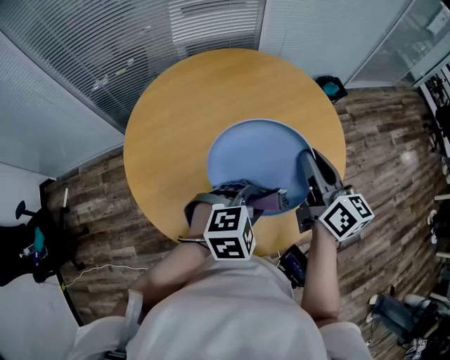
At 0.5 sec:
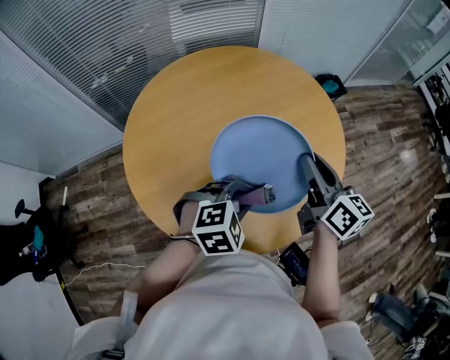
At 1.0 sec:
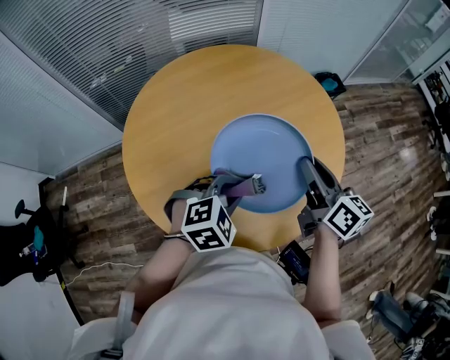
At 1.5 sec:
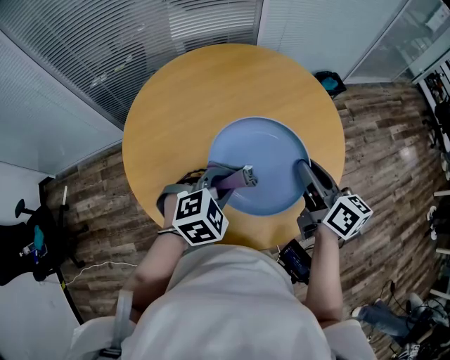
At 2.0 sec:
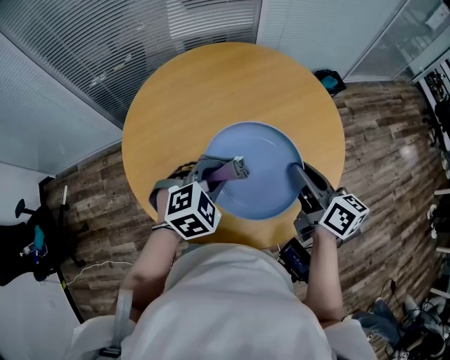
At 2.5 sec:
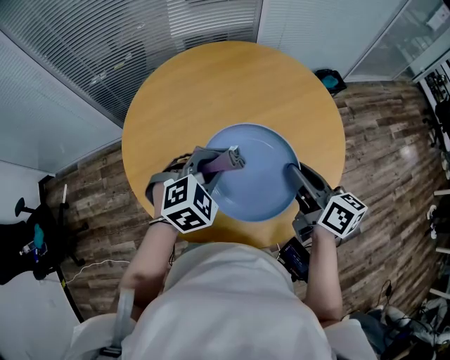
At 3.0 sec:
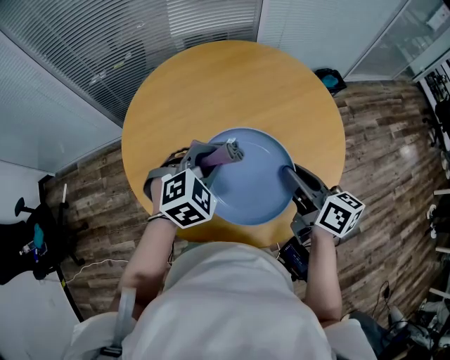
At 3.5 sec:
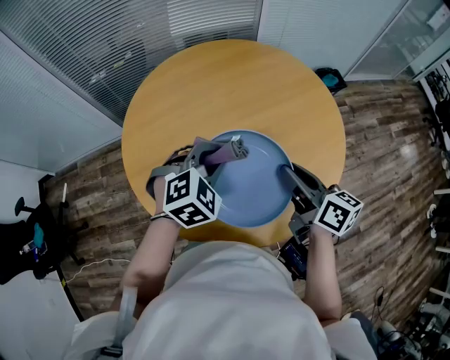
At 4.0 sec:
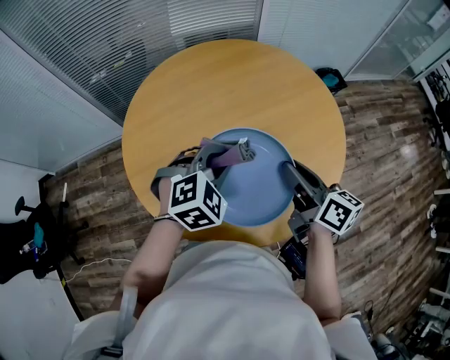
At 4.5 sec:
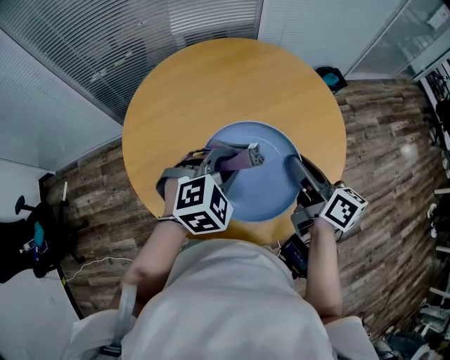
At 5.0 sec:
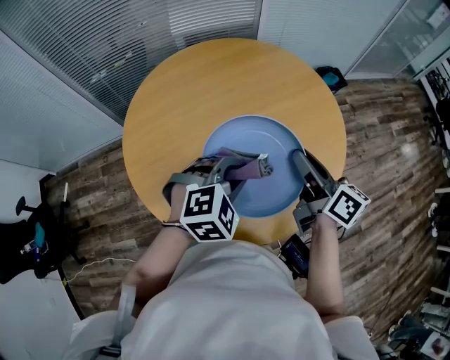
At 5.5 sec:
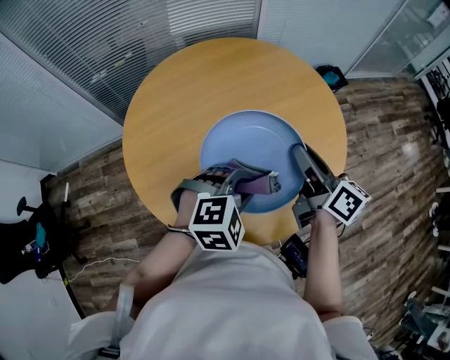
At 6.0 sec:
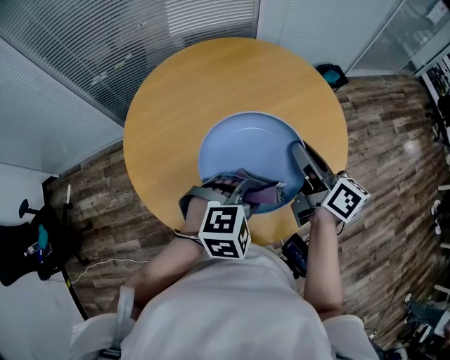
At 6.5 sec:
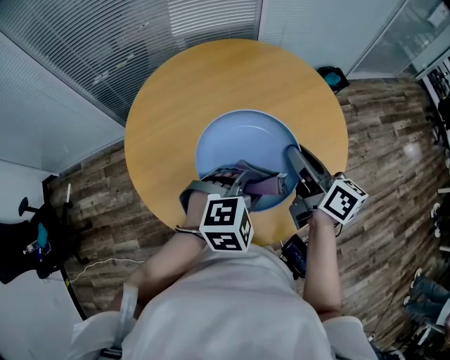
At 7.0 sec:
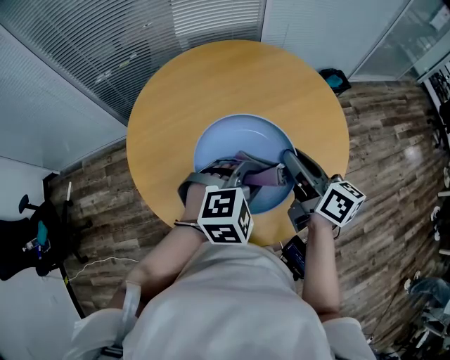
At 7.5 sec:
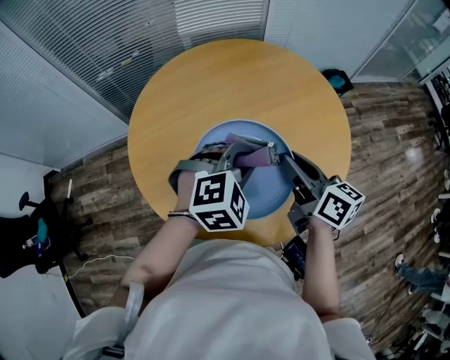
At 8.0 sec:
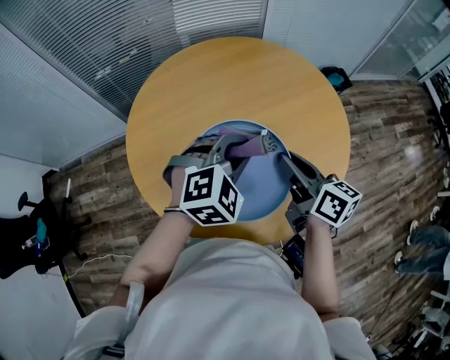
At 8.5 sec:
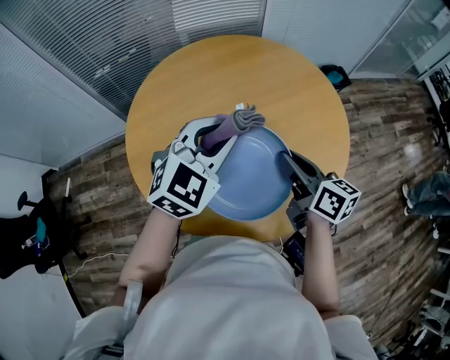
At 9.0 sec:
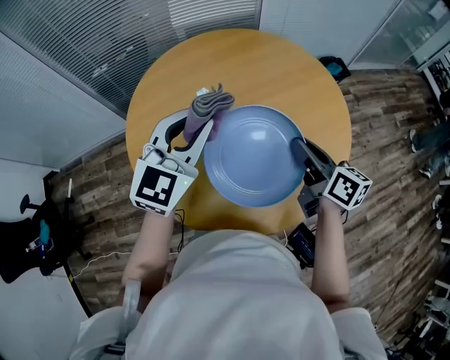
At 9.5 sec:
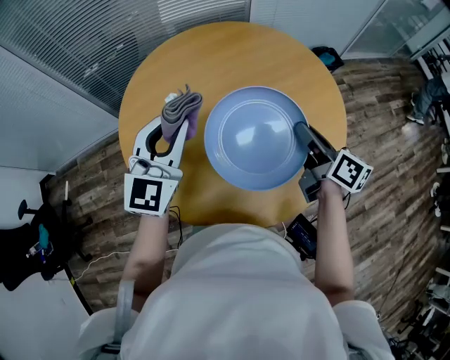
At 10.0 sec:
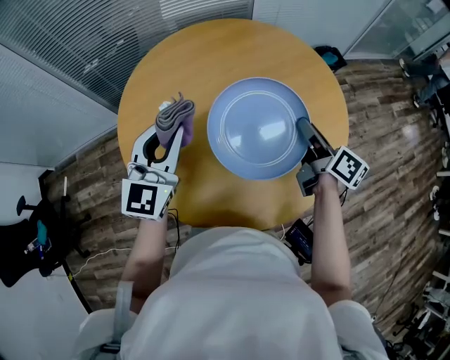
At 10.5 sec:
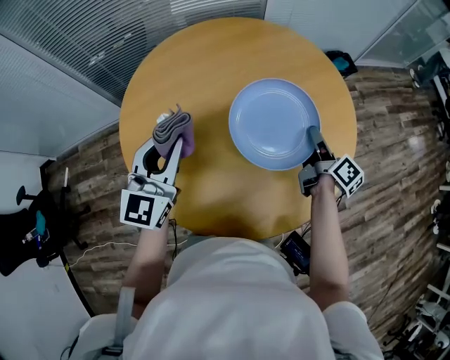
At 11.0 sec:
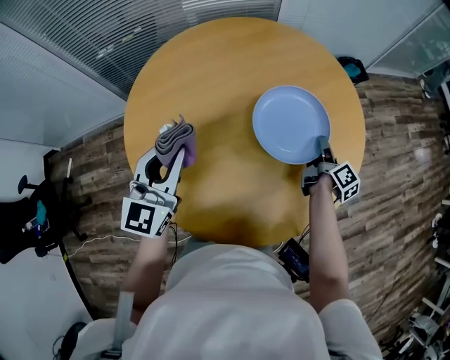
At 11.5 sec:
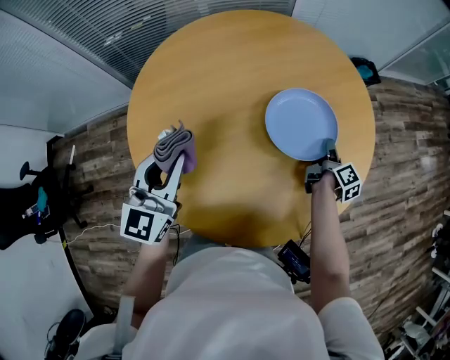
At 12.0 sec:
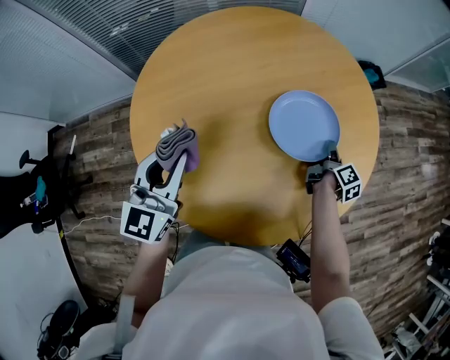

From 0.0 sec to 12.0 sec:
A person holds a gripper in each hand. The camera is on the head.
From 0.0 sec to 2.0 sec: The left gripper is displaced to the left by approximately 10 cm. Meanwhile the right gripper travels downward by approximately 5 cm.
From 2.0 sec to 4.0 sec: The grippers stay close to where they were, moving slightly.
From 4.0 sec to 6.0 sec: The left gripper heads to the right and backward, covering roughly 10 cm.
From 6.0 sec to 8.0 sec: The left gripper is displaced forward, upward and to the left by some 15 cm.
From 8.0 sec to 10.0 sec: The right gripper shifts approximately 5 cm to the right. Meanwhile the left gripper shifts about 15 cm to the left, and tips its fingers upward by roughly 40 degrees.
From 10.0 sec to 12.0 sec: The right gripper moves downward and to the right, approximately 25 cm, and turns by some 40 degrees, while the left gripper goes some 5 cm downward.

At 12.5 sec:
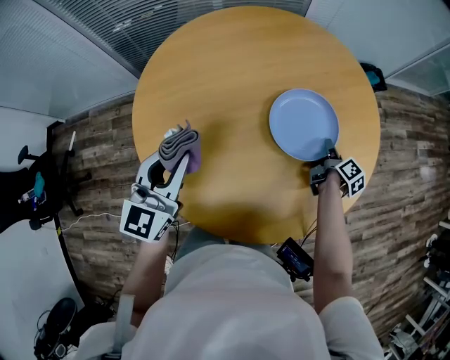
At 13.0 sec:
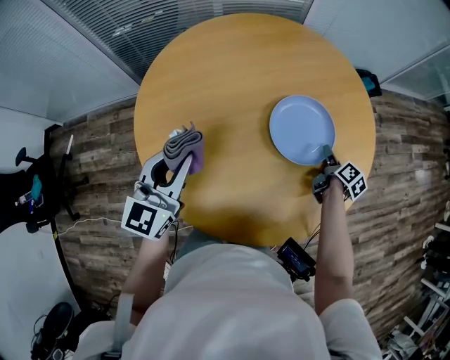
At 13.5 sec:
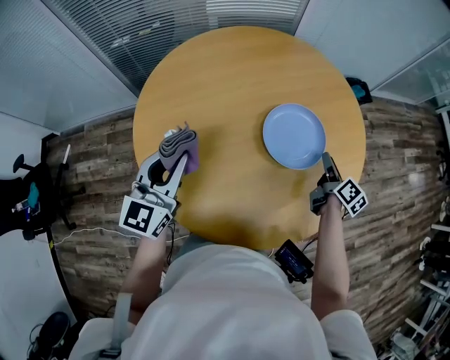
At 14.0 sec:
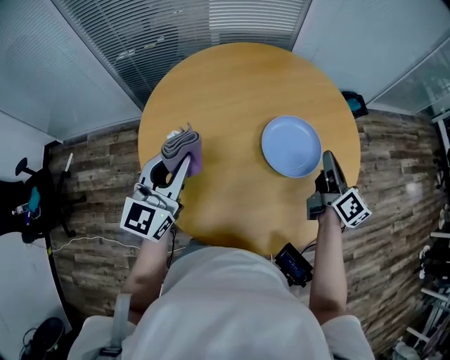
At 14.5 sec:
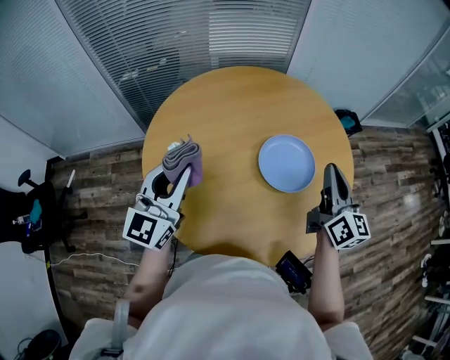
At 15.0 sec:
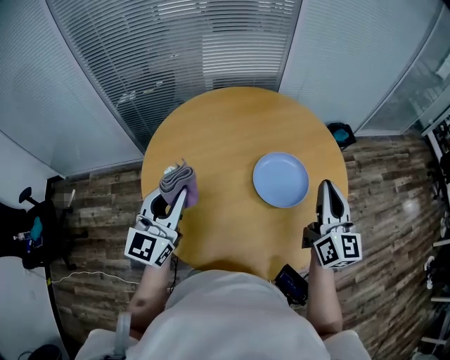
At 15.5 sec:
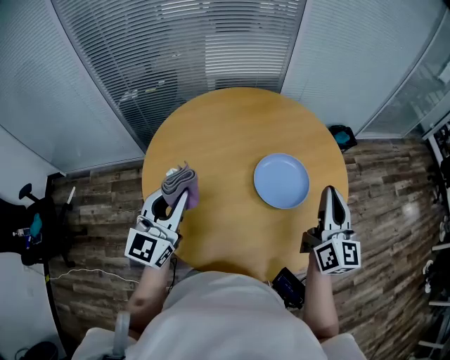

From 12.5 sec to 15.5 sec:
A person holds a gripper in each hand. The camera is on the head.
From 12.5 sec to 14.0 sec: The left gripper goes approximately 5 cm upward, while the right gripper moves upward, some 25 cm, swivels about 40 degrees, and opens, then closes once more.
From 14.0 sec to 15.5 sec: The right gripper heads upward and backward, covering approximately 15 cm, and turns by some 30 degrees.

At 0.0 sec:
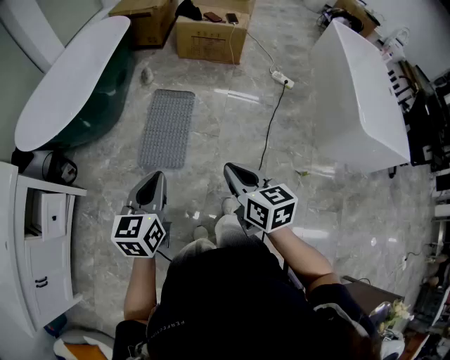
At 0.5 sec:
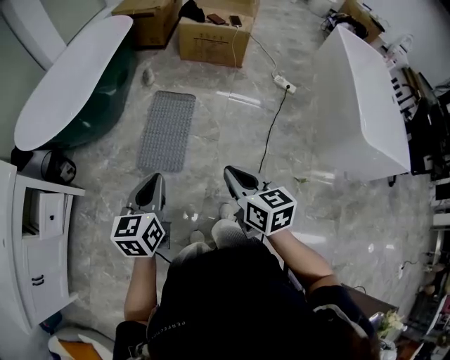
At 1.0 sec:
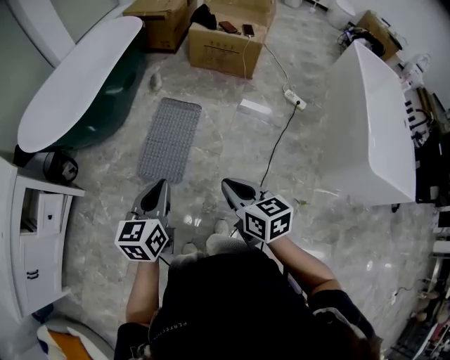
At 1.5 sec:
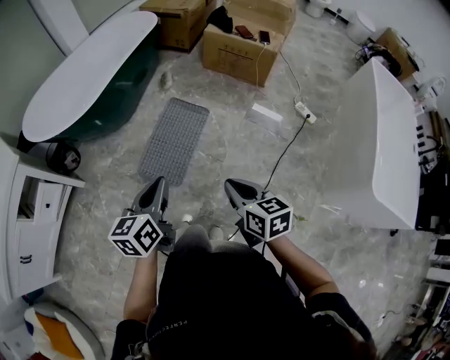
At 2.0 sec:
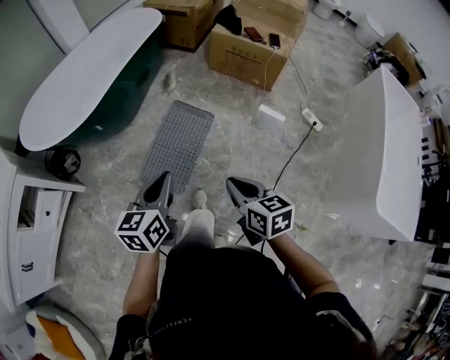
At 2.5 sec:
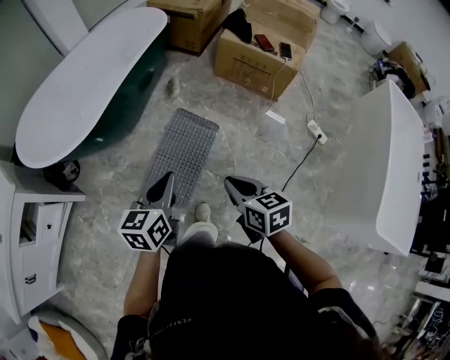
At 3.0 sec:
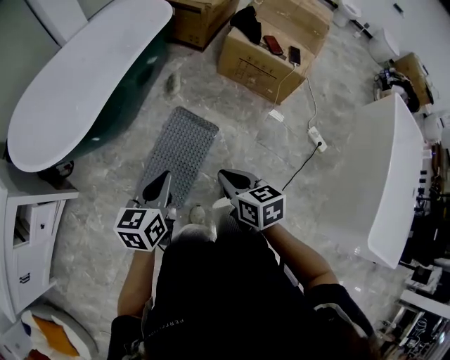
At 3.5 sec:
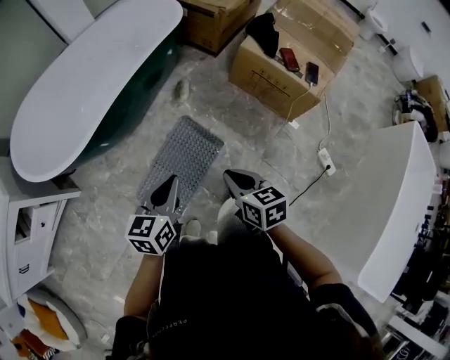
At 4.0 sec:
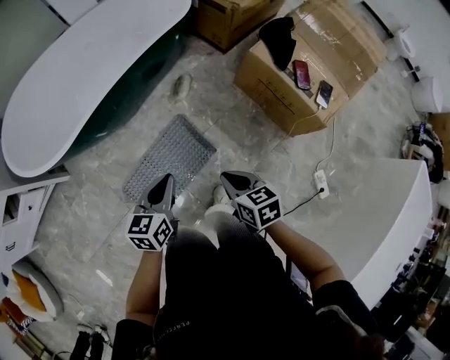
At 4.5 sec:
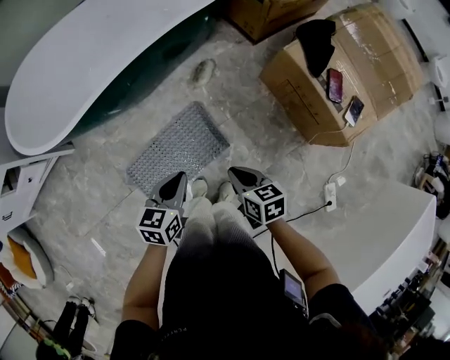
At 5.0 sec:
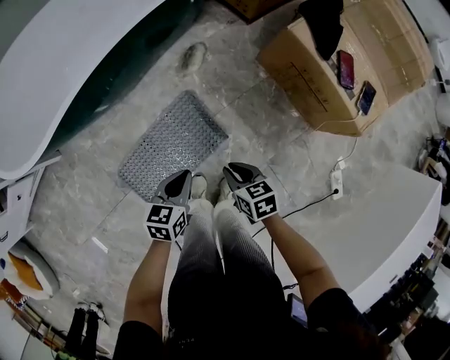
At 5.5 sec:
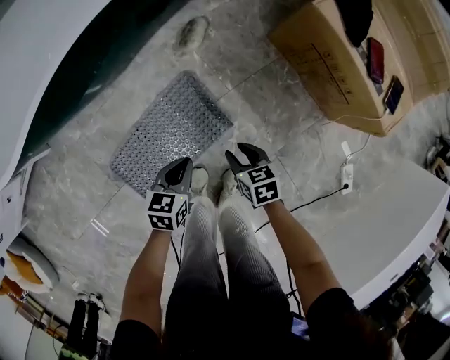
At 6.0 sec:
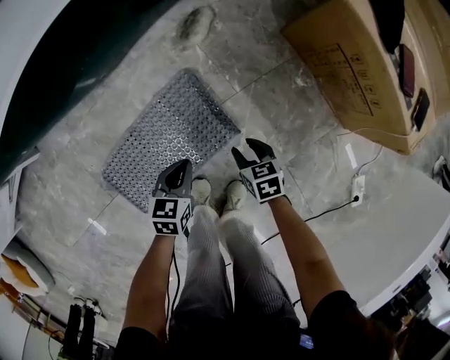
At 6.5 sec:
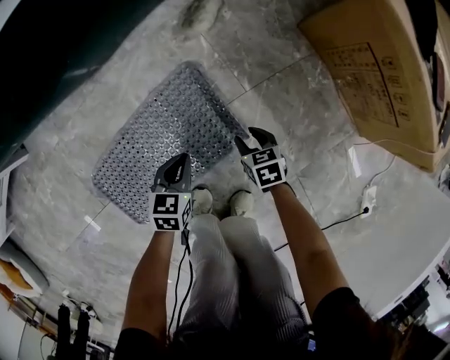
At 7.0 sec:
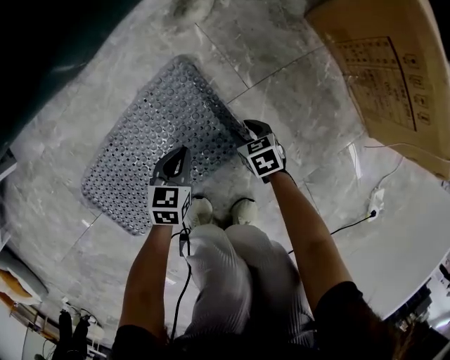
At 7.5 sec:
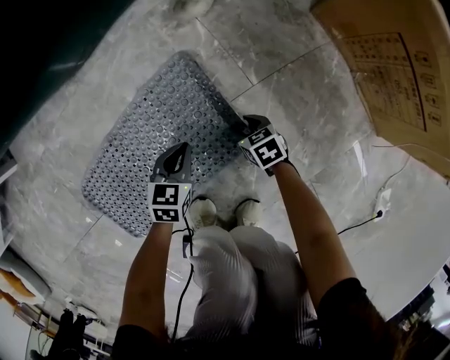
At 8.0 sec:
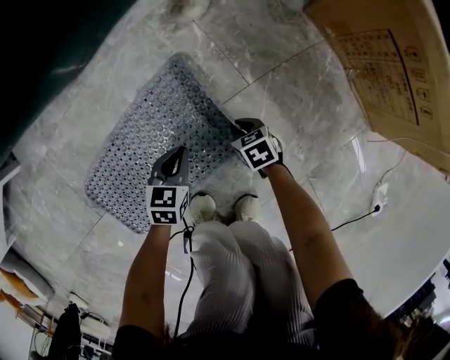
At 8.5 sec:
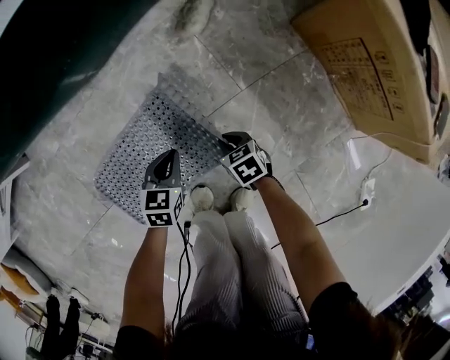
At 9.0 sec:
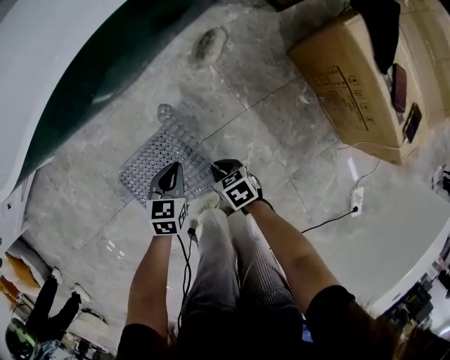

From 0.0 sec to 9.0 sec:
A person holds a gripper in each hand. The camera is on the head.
From 0.0 sec to 2.0 sec: The left gripper heads forward and to the right, covering approximately 20 cm. Meanwhile the right gripper moves forward, roughly 20 cm.
From 2.0 sec to 4.5 sec: Both grippers are carried some 40 cm. The left gripper swivels about 20 degrees; the right gripper rotates about 30 degrees.
From 4.5 sec to 7.0 sec: The grippers both shift downward by roughly 60 cm. The right gripper rotates roughly 30 degrees, and opens its fingers.
From 7.0 sec to 9.0 sec: The right gripper travels upward and to the left by some 30 cm, and closes its fingers; the left gripper shifts roughly 25 cm upward.

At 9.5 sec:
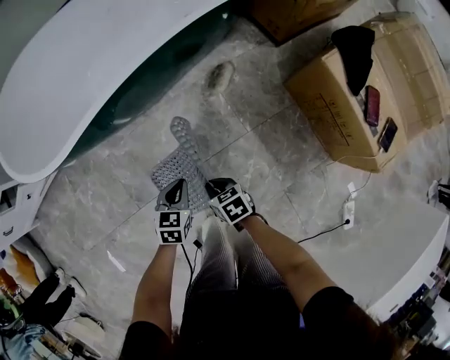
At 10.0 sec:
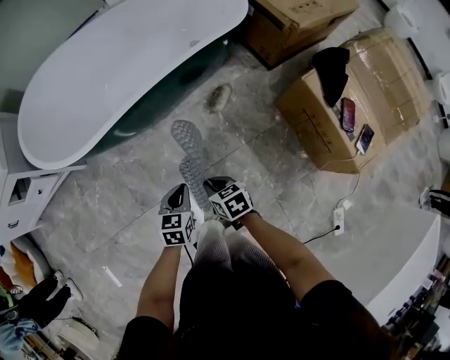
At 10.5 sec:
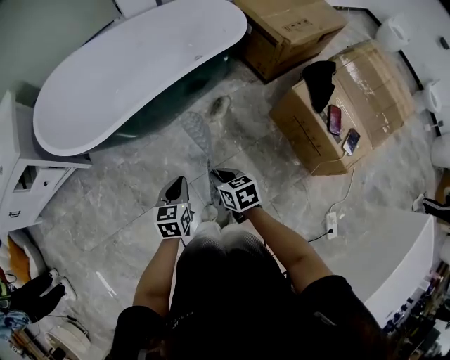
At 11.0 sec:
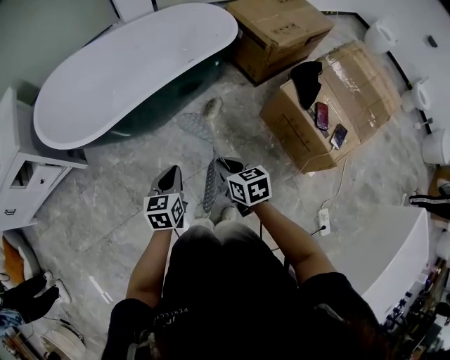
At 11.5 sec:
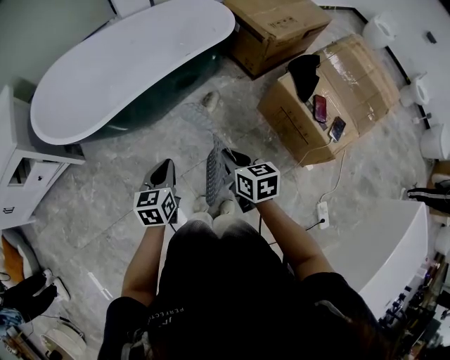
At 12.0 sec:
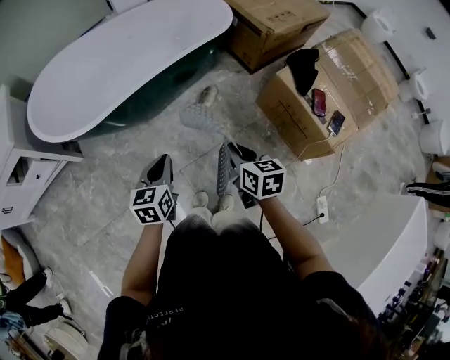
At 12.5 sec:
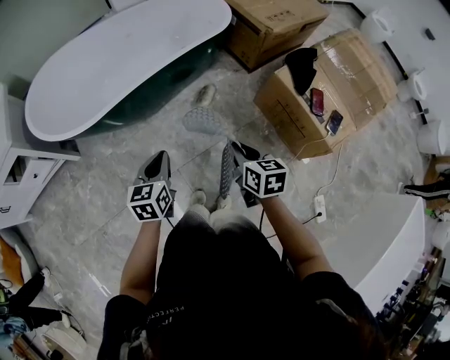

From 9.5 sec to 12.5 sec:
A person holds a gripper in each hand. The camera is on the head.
From 9.5 sec to 11.0 sec: Both grippers move upward, approximately 25 cm. The right gripper turns by some 20 degrees, while the left gripper swivels approximately 20 degrees.
From 11.0 sec to 12.5 sec: The right gripper shifts about 5 cm to the right.
